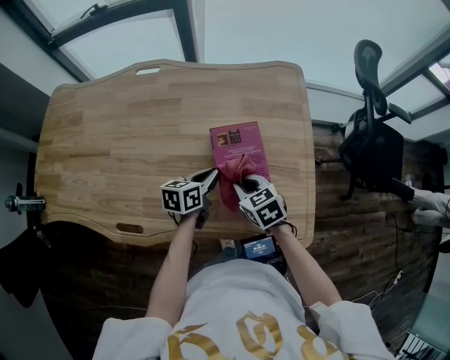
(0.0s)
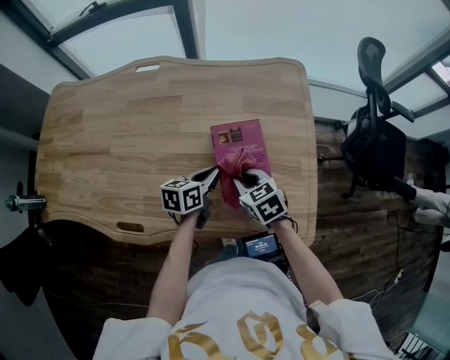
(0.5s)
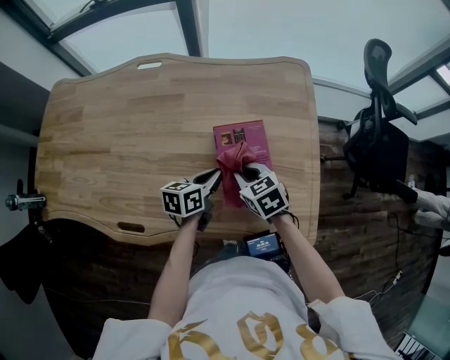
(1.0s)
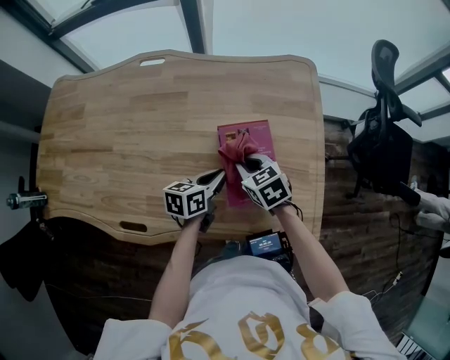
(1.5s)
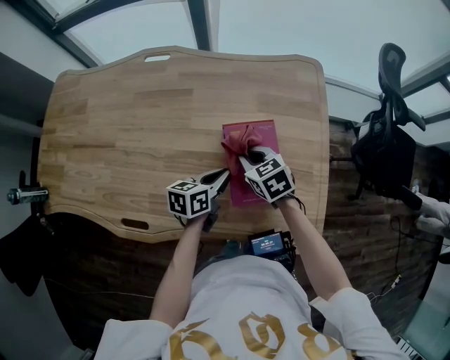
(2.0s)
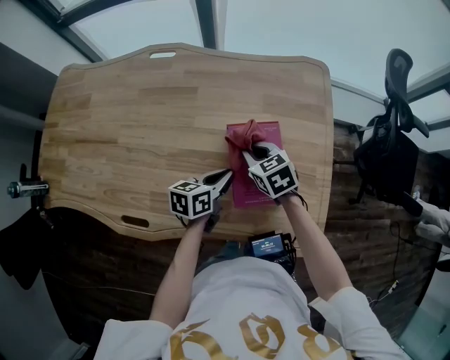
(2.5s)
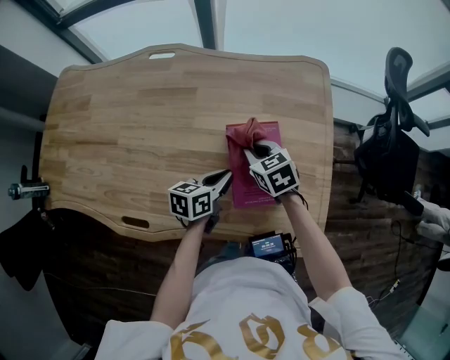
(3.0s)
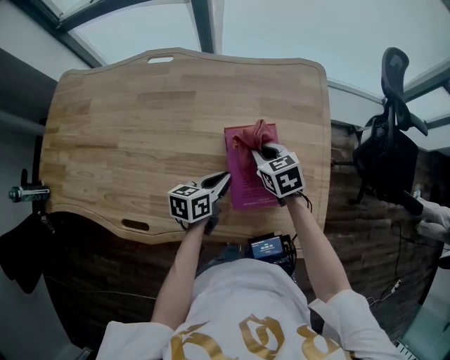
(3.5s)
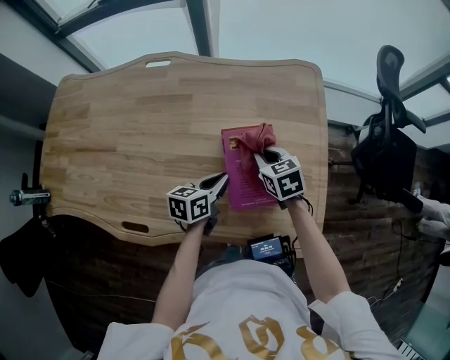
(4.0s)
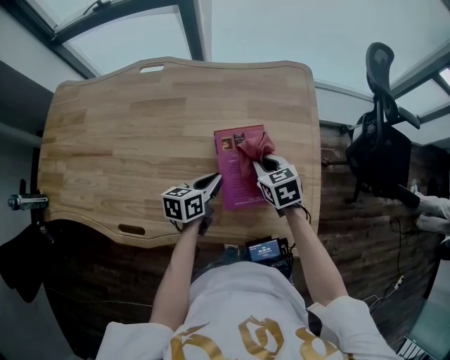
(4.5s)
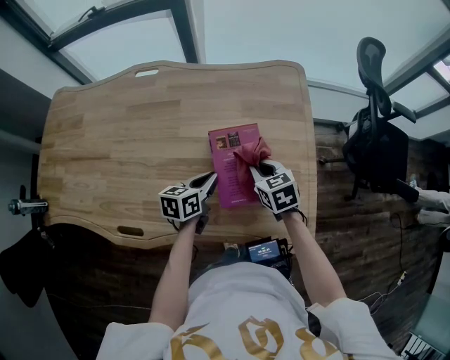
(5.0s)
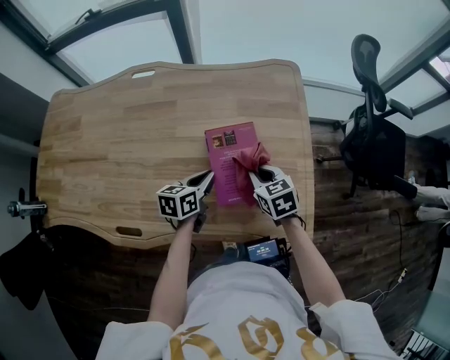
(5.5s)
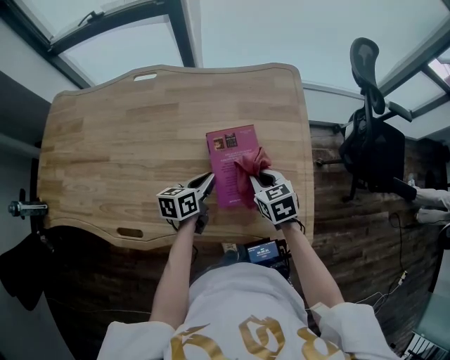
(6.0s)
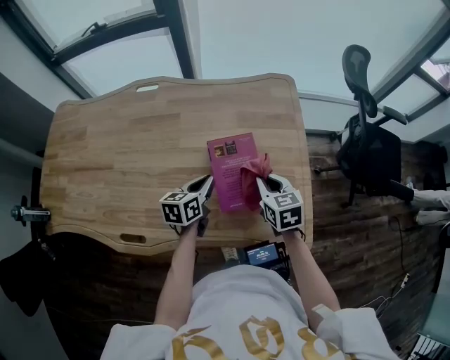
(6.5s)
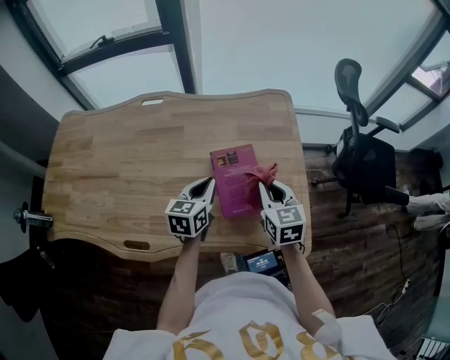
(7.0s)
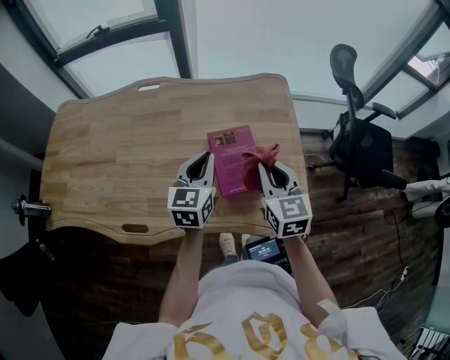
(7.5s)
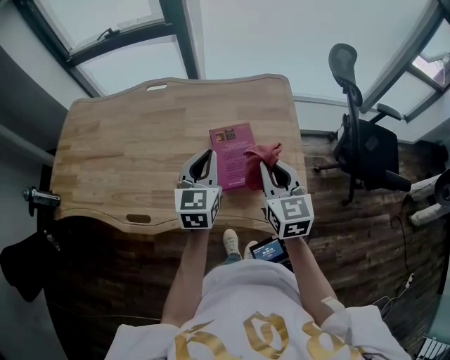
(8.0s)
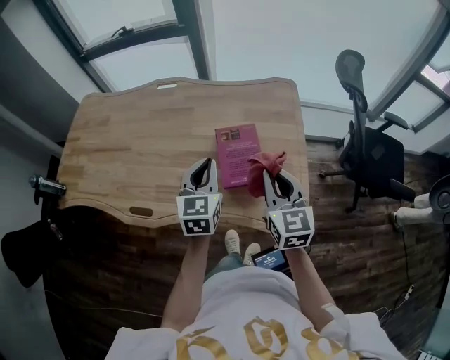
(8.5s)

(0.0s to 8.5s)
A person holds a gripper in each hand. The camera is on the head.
0.0s - 2.0s: The right gripper moves forward, approximately 10 cm.
2.0s - 4.0s: The right gripper goes some 5 cm to the right.
4.0s - 6.5s: The right gripper moves backward and to the right, some 10 cm.
6.5s - 8.5s: The two grippers go roughly 20 cm upward and backward. The right gripper turns by roughly 30 degrees; the left gripper rotates some 40 degrees.

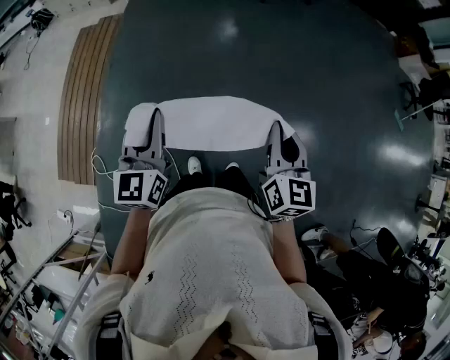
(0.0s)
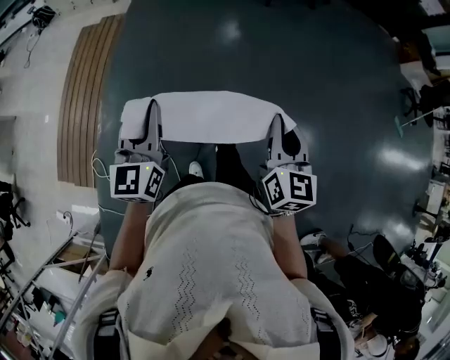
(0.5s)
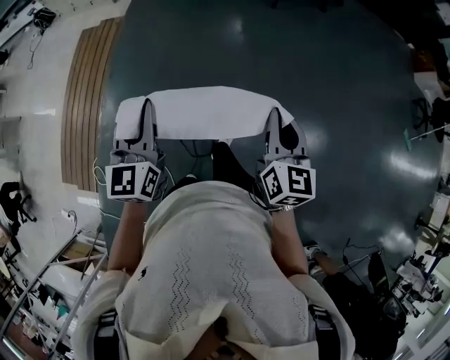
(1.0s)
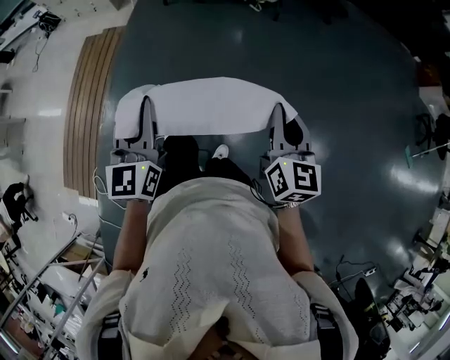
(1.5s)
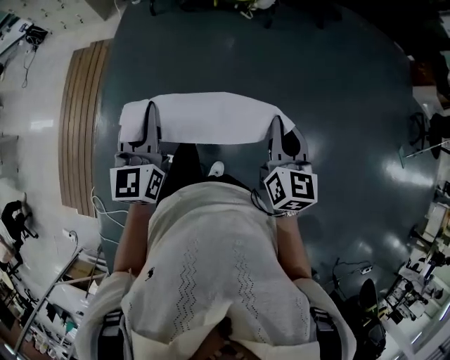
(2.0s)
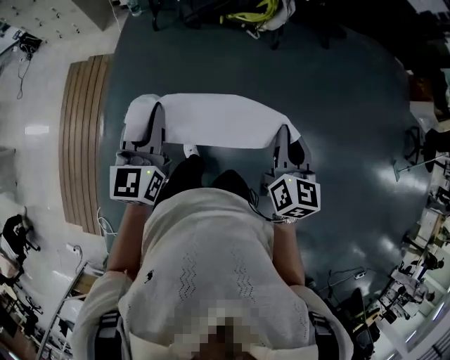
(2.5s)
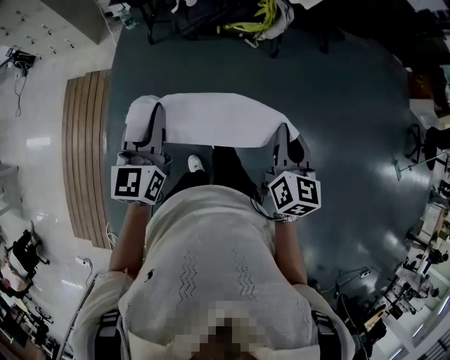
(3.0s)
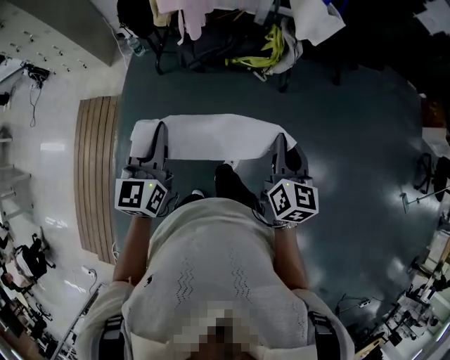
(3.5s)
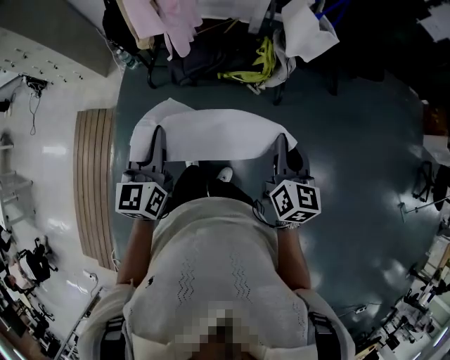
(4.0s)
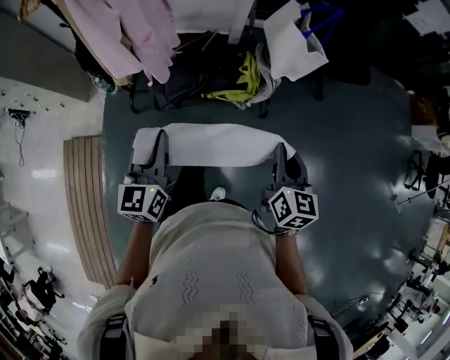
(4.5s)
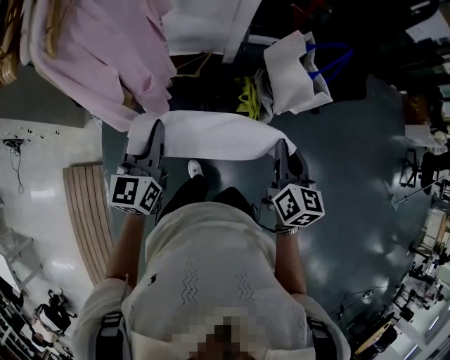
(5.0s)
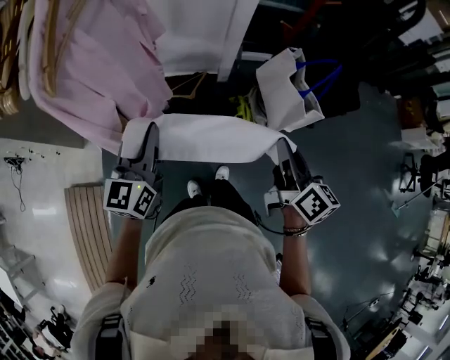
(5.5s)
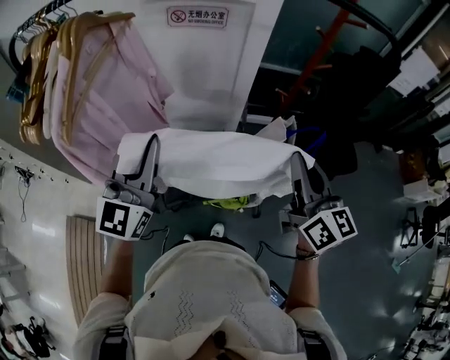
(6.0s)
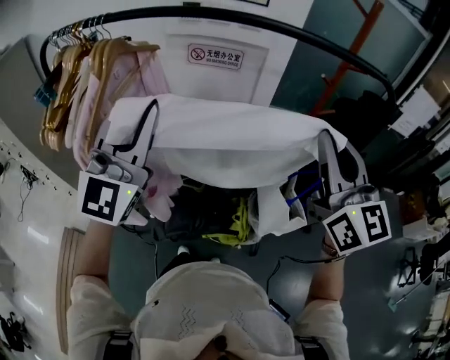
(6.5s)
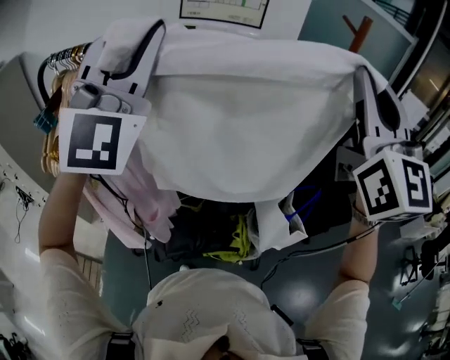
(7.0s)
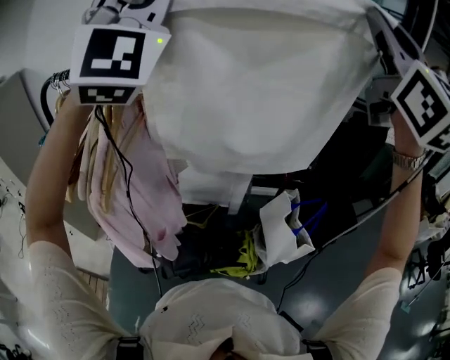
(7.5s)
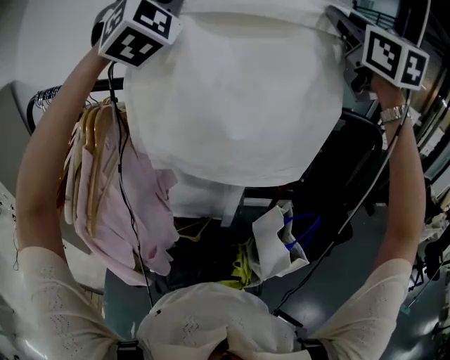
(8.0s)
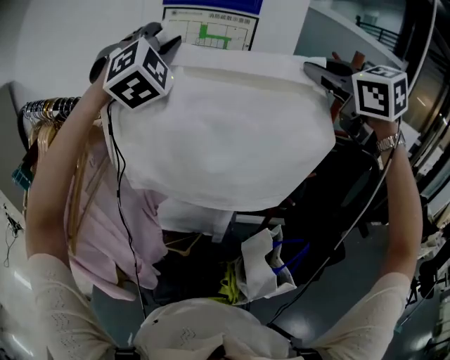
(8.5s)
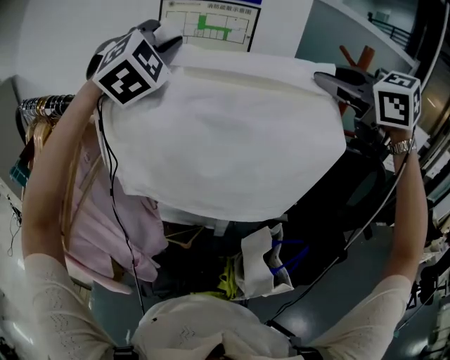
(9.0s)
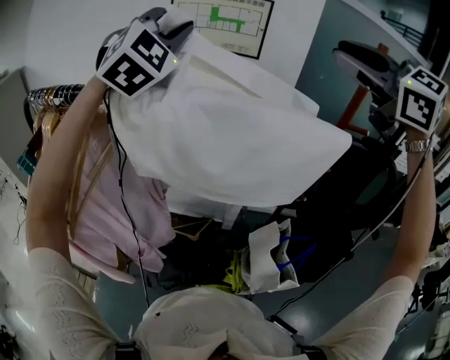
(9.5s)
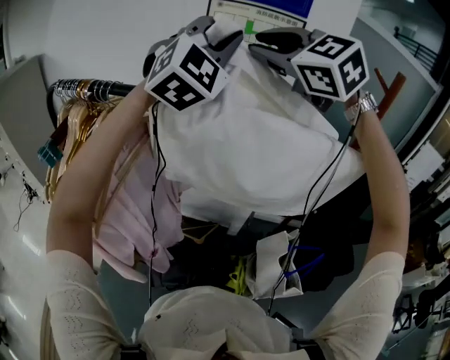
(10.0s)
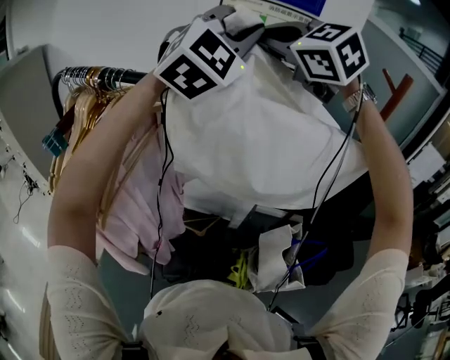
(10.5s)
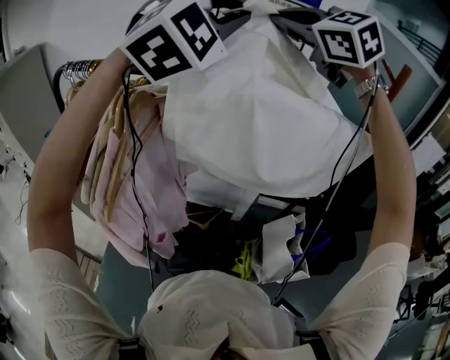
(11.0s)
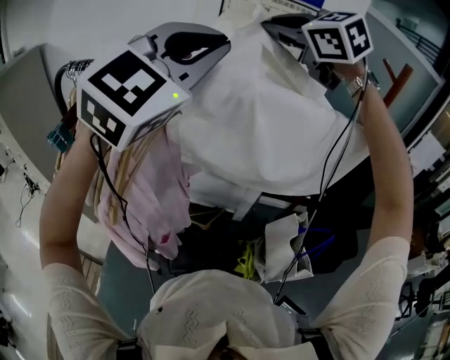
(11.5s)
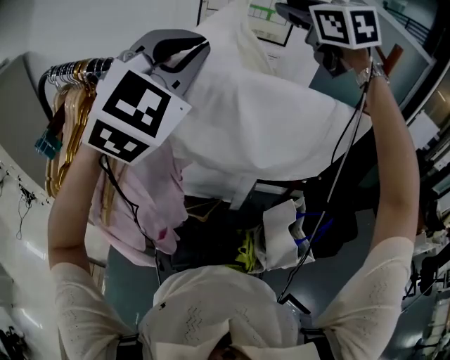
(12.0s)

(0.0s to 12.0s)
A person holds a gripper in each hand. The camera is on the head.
0.0s - 2.0s: The pair of grippers is taken forward, roughly 50 cm.
2.0s - 4.0s: The two grippers travel together, forward, some 70 cm.
4.0s - 6.0s: Both grippers are carried forward, some 50 cm. The grippers both shift upward by some 20 cm. The left gripper changes its angle by roughly 30 degrees, while the right gripper changes its angle by about 20 degrees.
6.0s - 8.0s: Both grippers move upward and forward, roughly 50 cm. The right gripper rolls counterclockwise, seen from behind, by roughly 40 degrees. Meanwhile the left gripper rolls clockwise, seen from behind, by approximately 60 degrees.
8.0s - 10.0s: The left gripper shifts about 10 cm downward. Meanwhile the right gripper goes approximately 25 cm to the left, forward and downward, changes its angle by about 40 degrees, and opens its fingers.
10.0s - 12.0s: The left gripper heads backward, to the left and downward, covering approximately 15 cm; the right gripper moves about 5 cm, rotates roughly 20 degrees, and closes, then opens again.

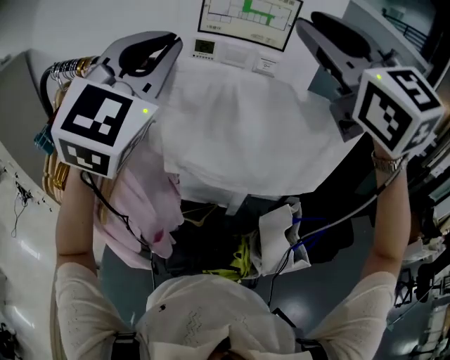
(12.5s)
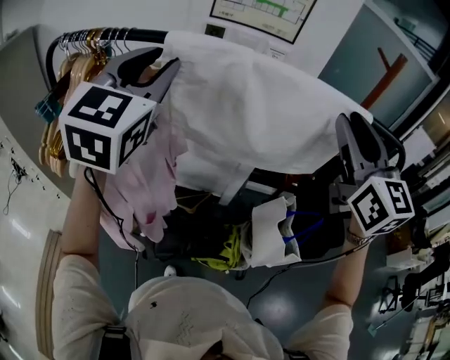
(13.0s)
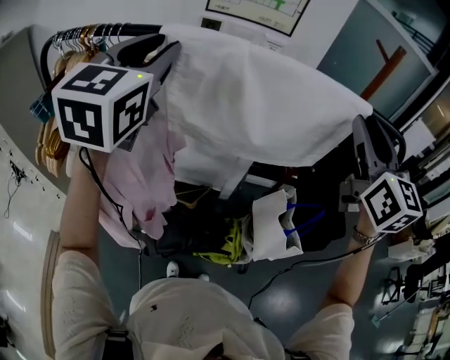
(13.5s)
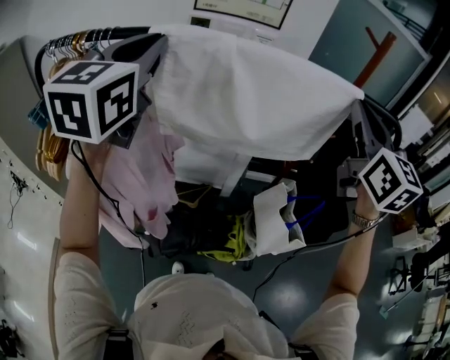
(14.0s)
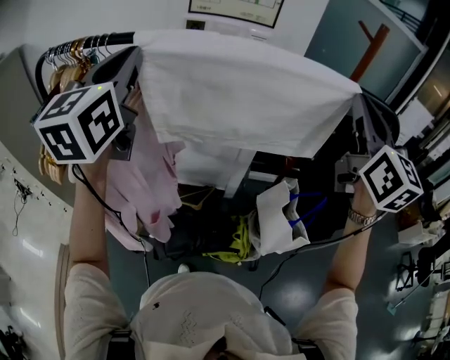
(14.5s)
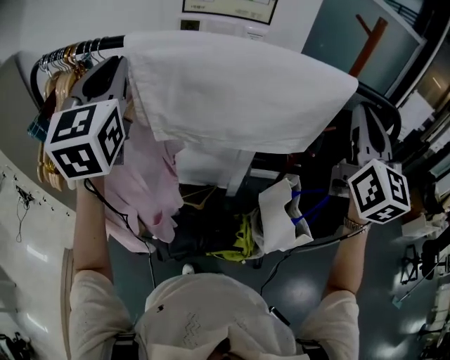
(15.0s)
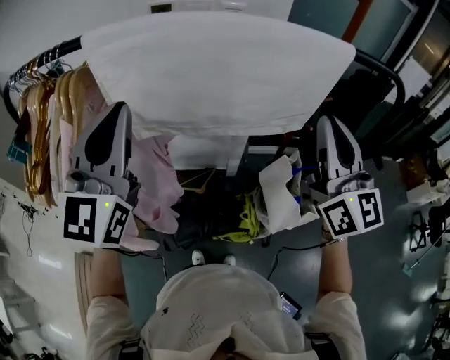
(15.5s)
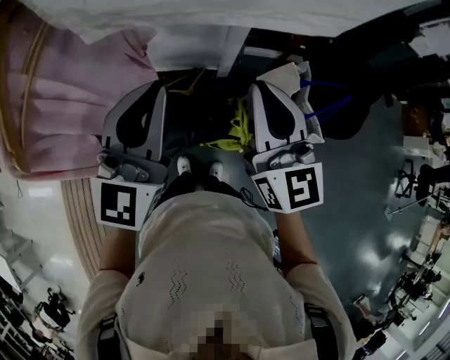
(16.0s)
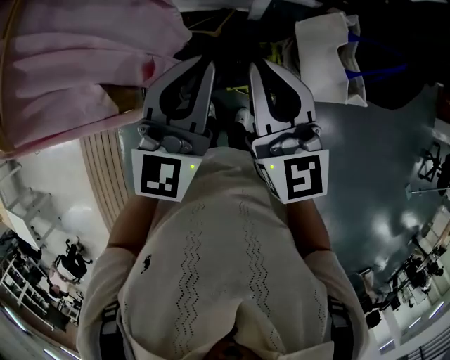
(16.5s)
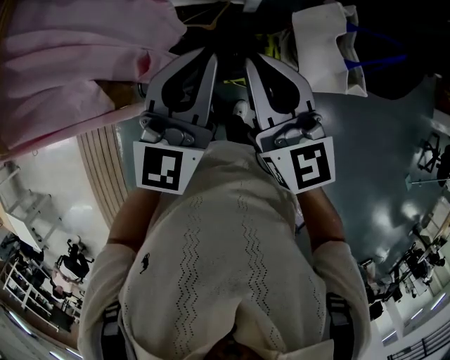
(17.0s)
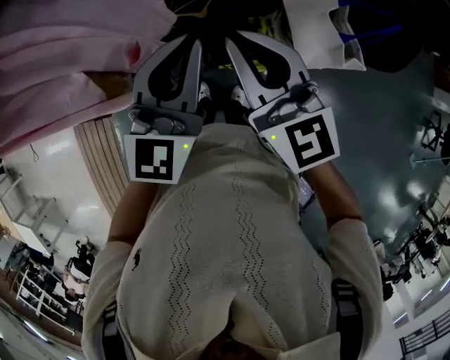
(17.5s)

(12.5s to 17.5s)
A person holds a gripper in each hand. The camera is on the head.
12.5s - 15.0s: The right gripper goes approximately 25 cm to the right and downward, swivels about 40 degrees, and closes its fingers, while the left gripper moves downward and to the left, approximately 10 cm, and turns by about 30 degrees.
15.0s - 17.5s: The right gripper moves downward and to the left, about 40 cm, and swivels about 40 degrees. Meanwhile the left gripper heads downward and to the right, covering about 40 cm, and rotates approximately 30 degrees.

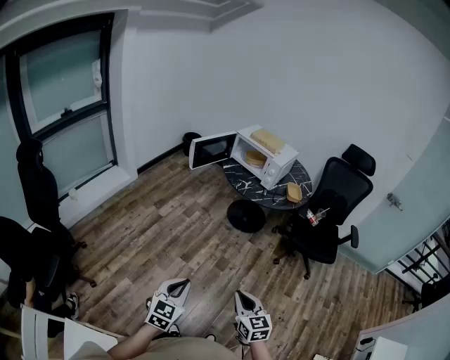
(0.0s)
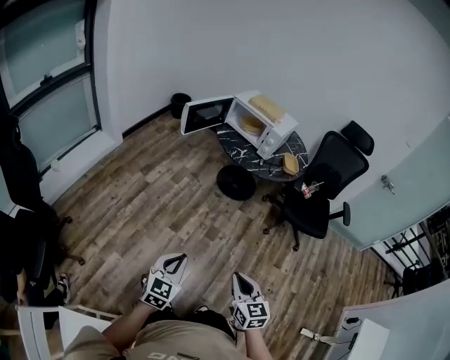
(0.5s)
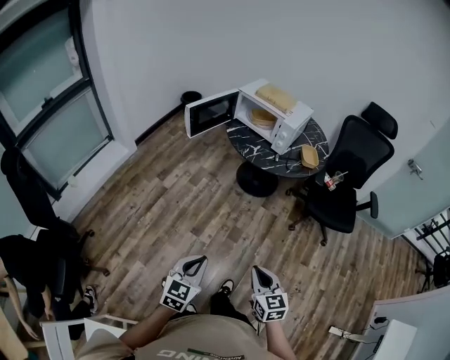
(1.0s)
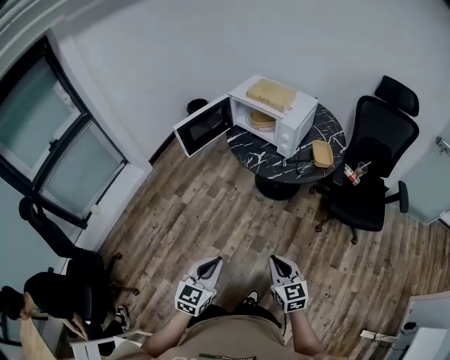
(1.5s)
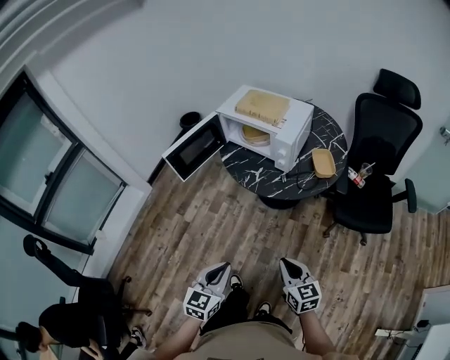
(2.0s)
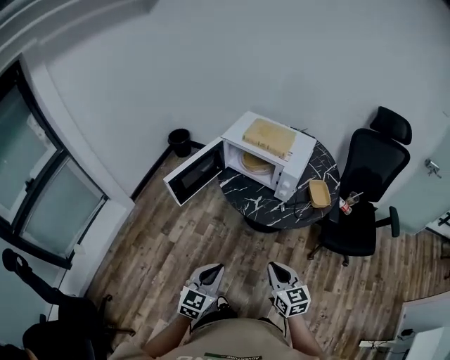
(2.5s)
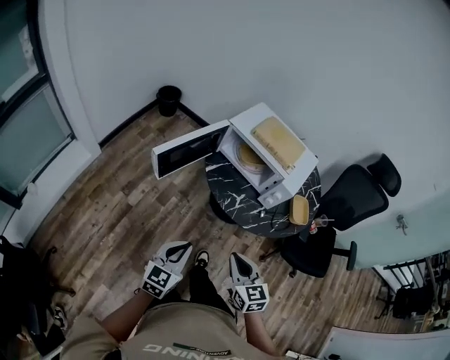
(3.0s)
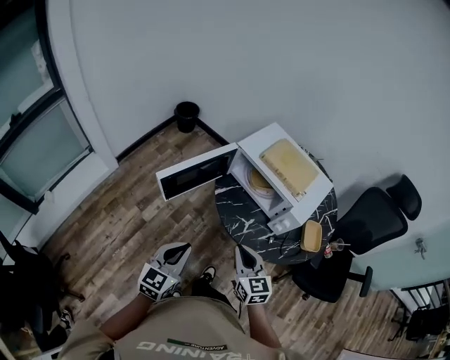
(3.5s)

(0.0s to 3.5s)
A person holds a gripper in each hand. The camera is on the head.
0.0s - 2.0s: The two grippers go approximately 35 cm forward.
2.0s - 3.5s: Both grippers move forward and to the left, about 30 cm.
